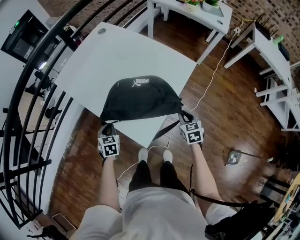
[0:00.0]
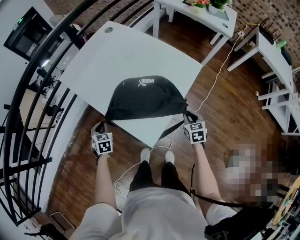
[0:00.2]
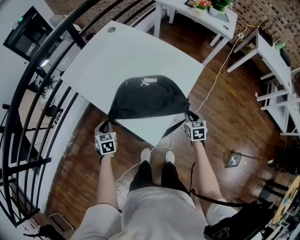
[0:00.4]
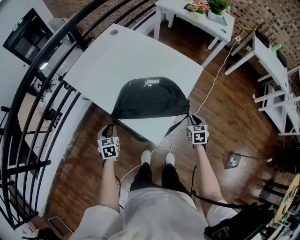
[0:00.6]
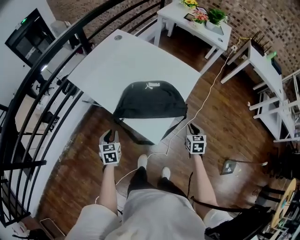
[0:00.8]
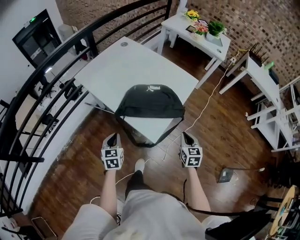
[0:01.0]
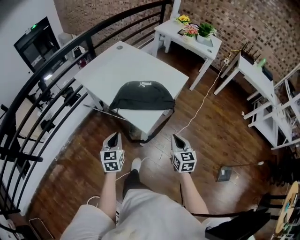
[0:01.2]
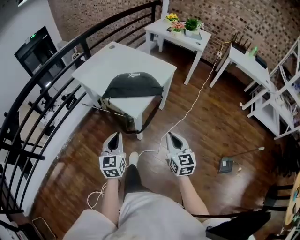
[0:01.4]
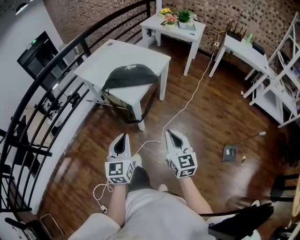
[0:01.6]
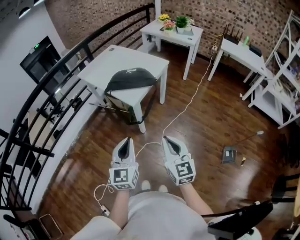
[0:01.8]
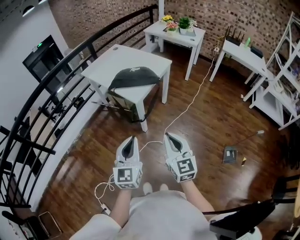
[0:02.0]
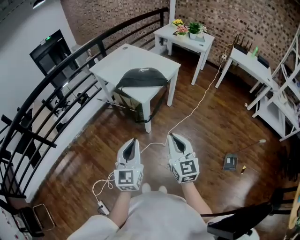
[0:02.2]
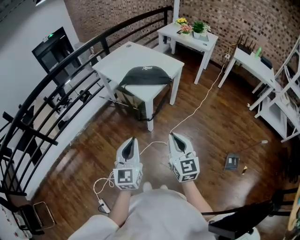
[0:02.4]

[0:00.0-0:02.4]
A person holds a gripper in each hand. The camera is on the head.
0:00.0 to 0:01.2: The grippers both shift backward and upward by approximately 25 cm. The left gripper turns by roughly 30 degrees. The right gripper rotates some 20 degrees.
0:01.2 to 0:02.4: The two grippers go some 40 cm backward and upward. The left gripper turns by roughly 20 degrees. The right gripper swivels some 20 degrees.

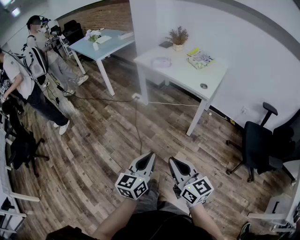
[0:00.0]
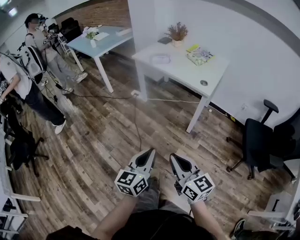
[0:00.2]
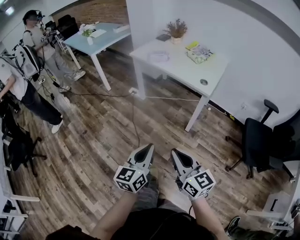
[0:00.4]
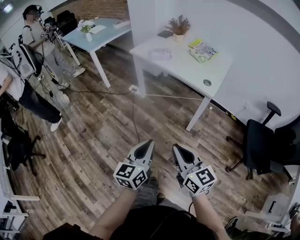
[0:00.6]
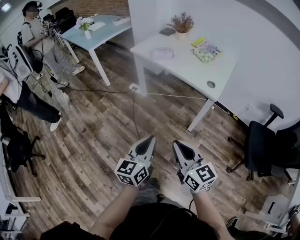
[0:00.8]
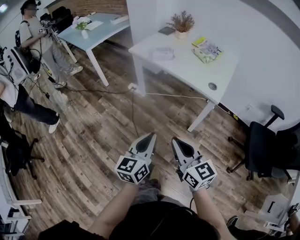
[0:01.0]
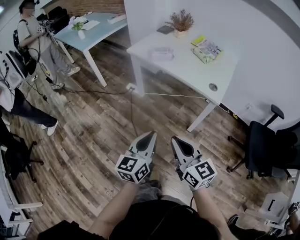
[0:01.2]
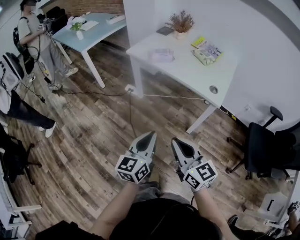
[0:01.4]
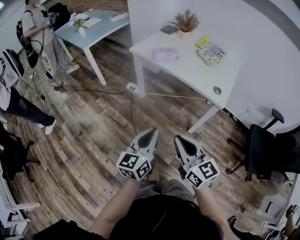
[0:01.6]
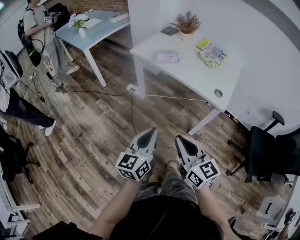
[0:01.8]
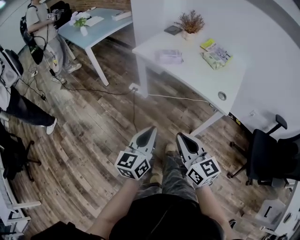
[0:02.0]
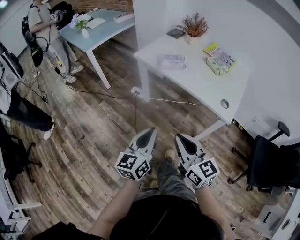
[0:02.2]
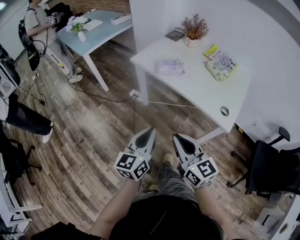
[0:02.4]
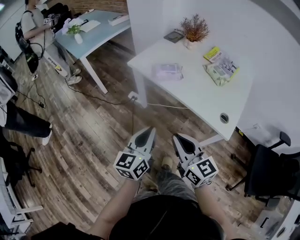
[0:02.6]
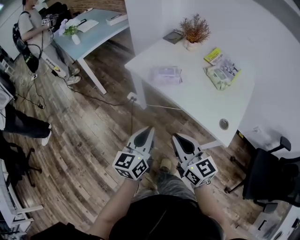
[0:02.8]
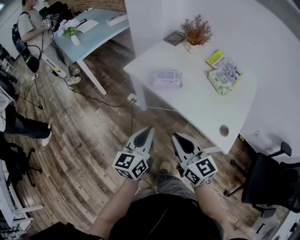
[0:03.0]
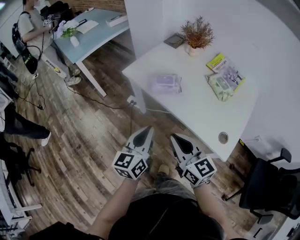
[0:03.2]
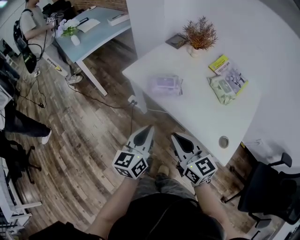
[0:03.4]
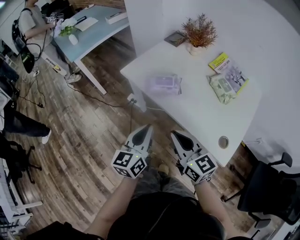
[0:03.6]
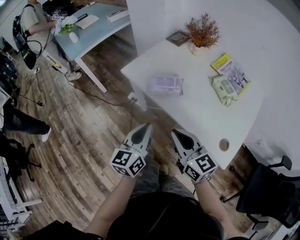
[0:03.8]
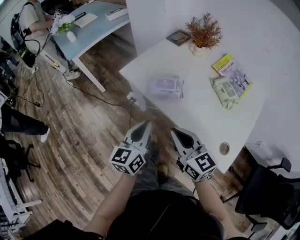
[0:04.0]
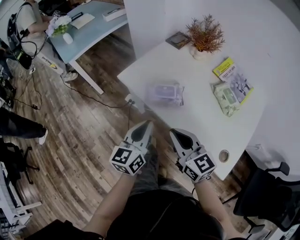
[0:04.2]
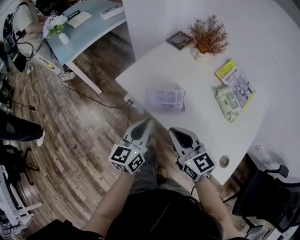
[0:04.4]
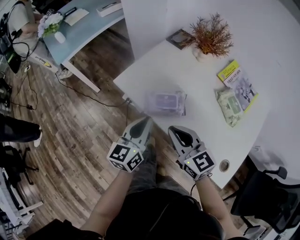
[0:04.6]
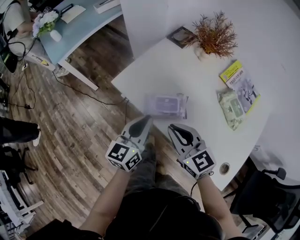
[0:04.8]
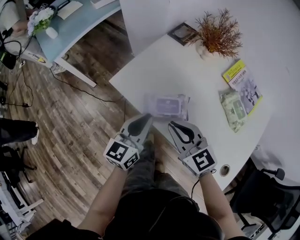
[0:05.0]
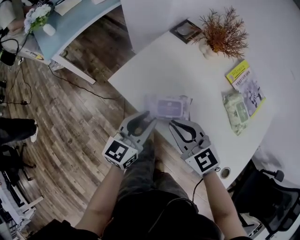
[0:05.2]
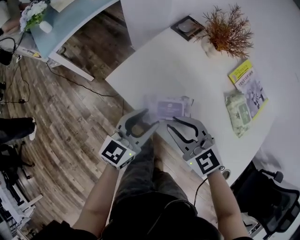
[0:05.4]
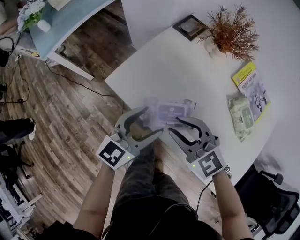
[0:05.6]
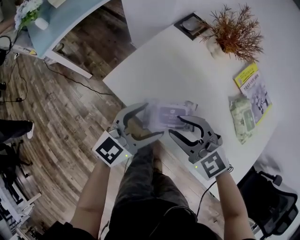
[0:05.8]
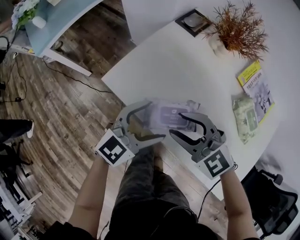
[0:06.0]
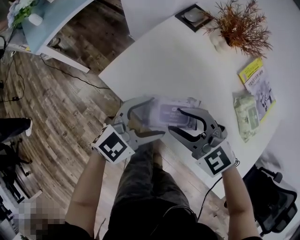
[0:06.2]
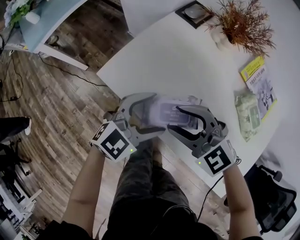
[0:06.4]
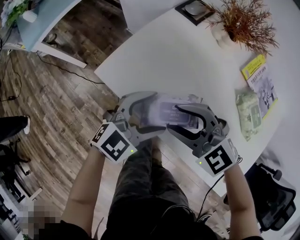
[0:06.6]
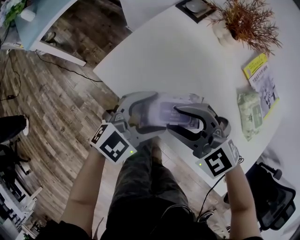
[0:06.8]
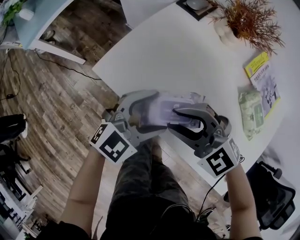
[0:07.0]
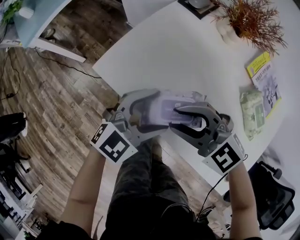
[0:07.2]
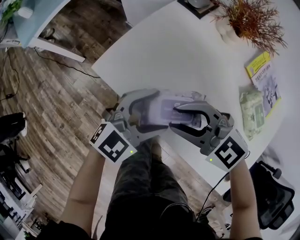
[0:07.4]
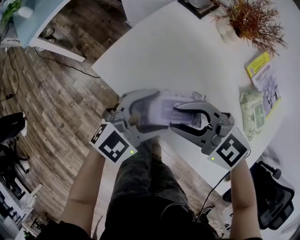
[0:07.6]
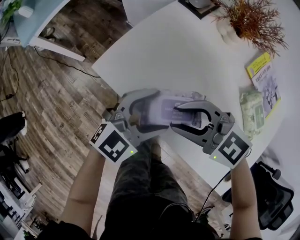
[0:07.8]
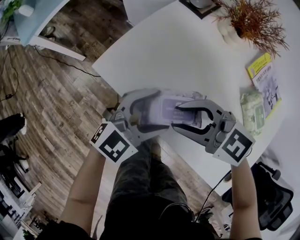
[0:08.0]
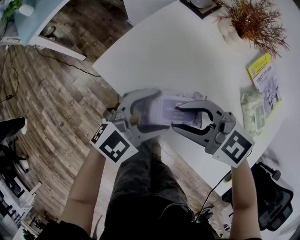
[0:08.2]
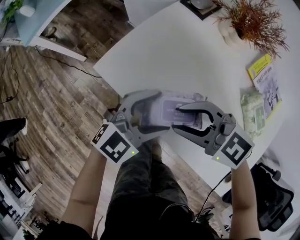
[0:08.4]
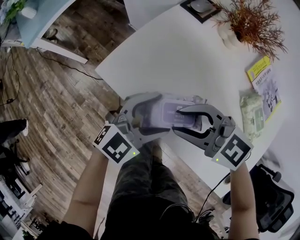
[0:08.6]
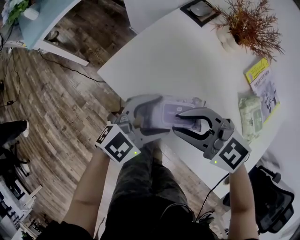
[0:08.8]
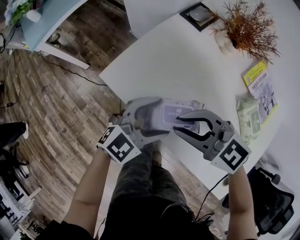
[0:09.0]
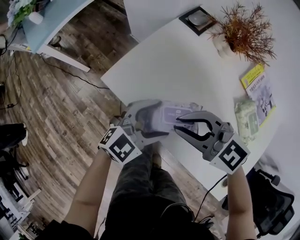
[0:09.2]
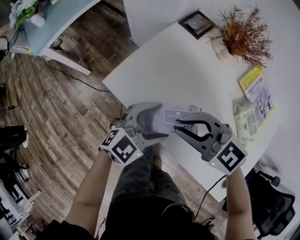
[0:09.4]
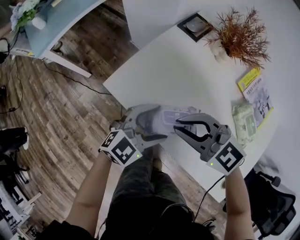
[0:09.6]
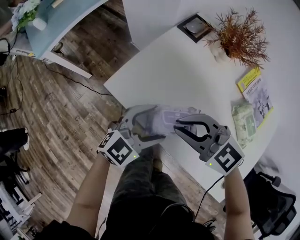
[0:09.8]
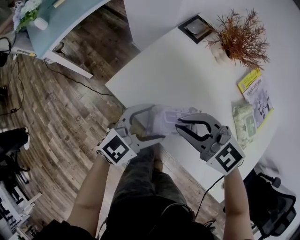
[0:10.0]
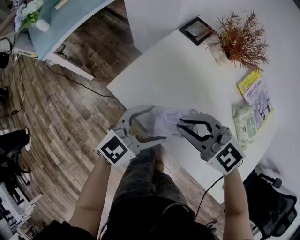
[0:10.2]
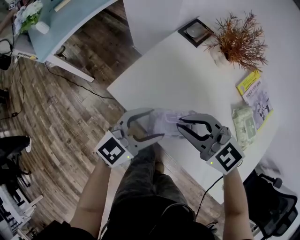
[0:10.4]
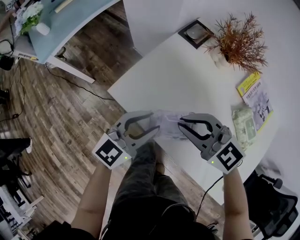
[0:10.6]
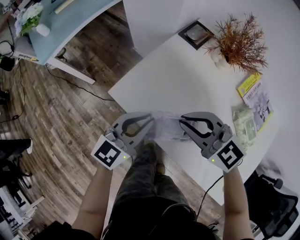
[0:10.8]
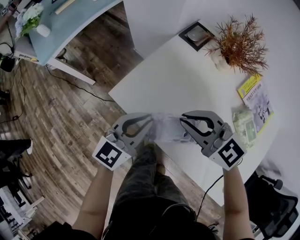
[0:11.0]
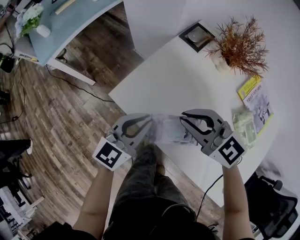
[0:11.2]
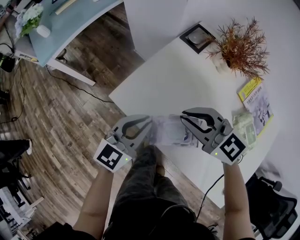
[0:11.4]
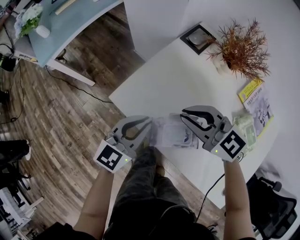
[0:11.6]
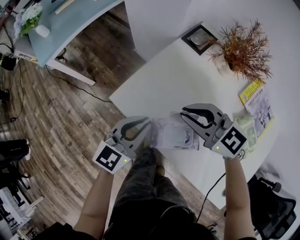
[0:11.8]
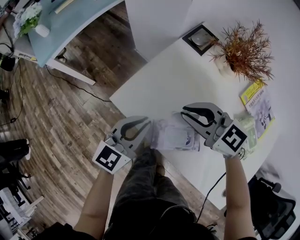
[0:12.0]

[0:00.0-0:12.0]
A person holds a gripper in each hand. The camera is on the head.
0:00.0 to 0:01.6: The grippers both shift forward by approximately 25 cm.
0:01.6 to 0:03.0: Both grippers travel together forward, approximately 25 cm.
0:03.0 to 0:04.4: The two grippers go some 20 cm forward.
0:04.4 to 0:06.0: The grippers both shift forward and downward by approximately 10 cm. The left gripper changes its angle by approximately 50 degrees, and opens its fingers. The right gripper changes its angle by about 40 degrees, and opens its fingers.
0:06.0 to 0:07.6: The grippers stay close to where they were, moving slightly.
0:07.6 to 0:09.0: The grippers stay close to where they were, moving slightly.
0:09.0 to 0:10.4: The left gripper moves some 5 cm.
0:10.4 to 0:12.0: The left gripper closes.

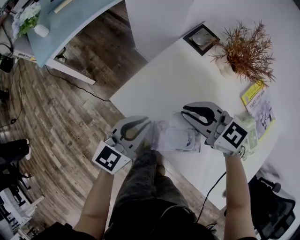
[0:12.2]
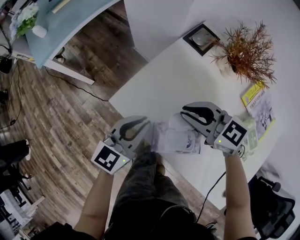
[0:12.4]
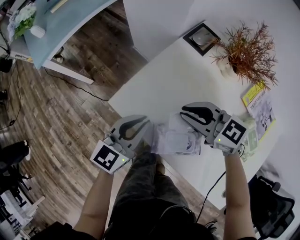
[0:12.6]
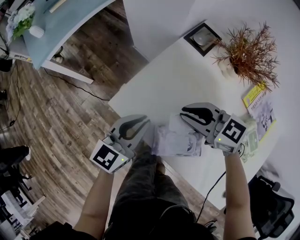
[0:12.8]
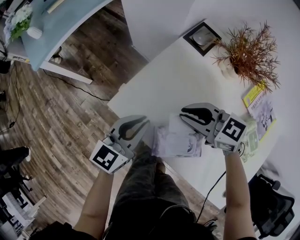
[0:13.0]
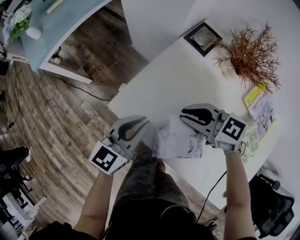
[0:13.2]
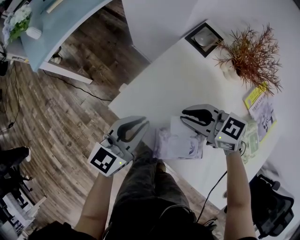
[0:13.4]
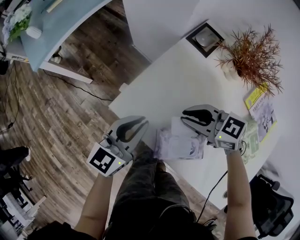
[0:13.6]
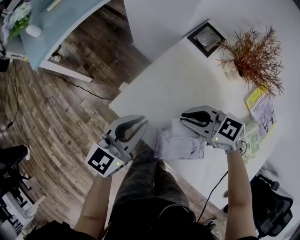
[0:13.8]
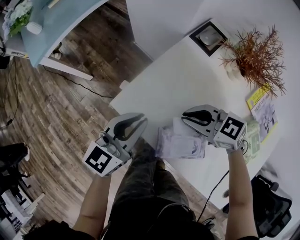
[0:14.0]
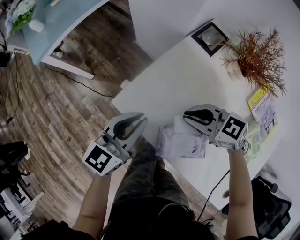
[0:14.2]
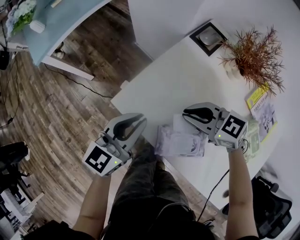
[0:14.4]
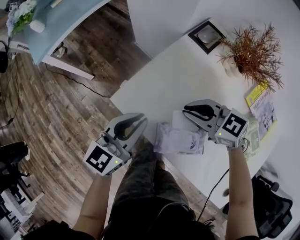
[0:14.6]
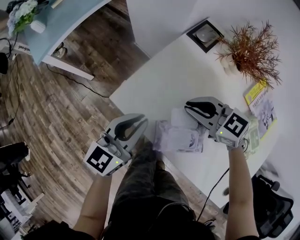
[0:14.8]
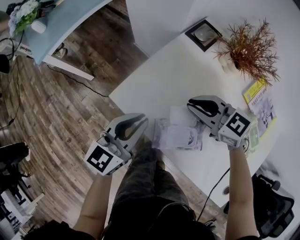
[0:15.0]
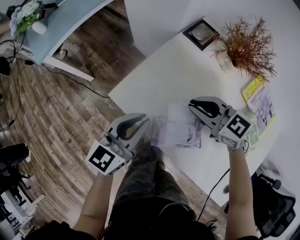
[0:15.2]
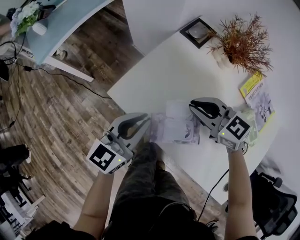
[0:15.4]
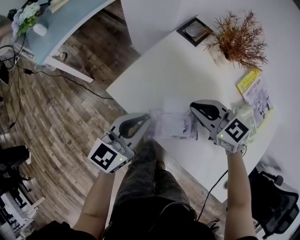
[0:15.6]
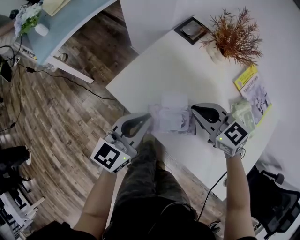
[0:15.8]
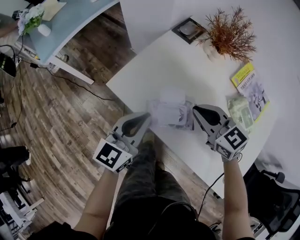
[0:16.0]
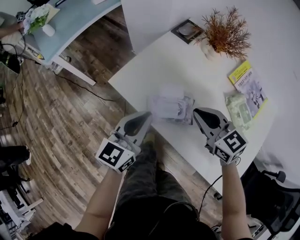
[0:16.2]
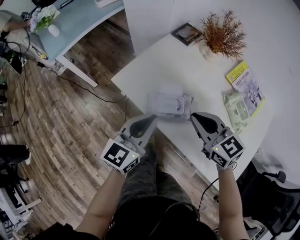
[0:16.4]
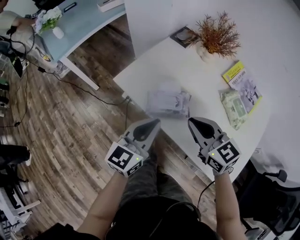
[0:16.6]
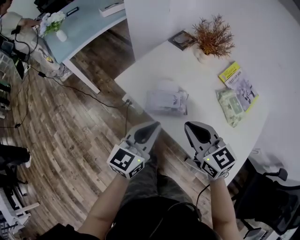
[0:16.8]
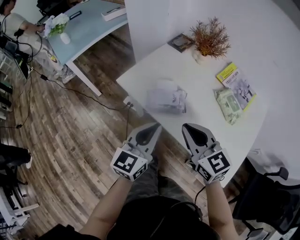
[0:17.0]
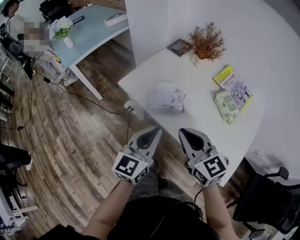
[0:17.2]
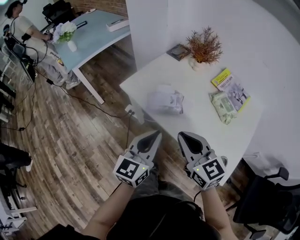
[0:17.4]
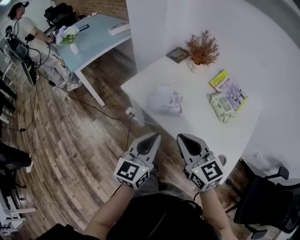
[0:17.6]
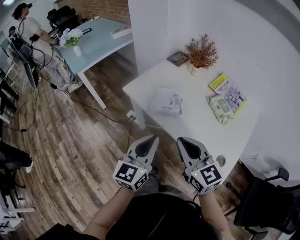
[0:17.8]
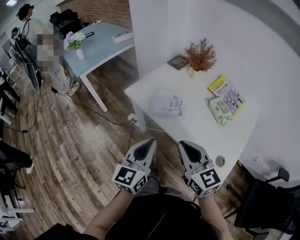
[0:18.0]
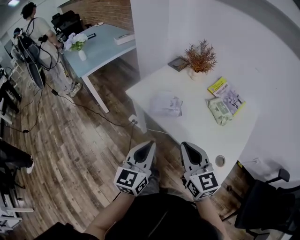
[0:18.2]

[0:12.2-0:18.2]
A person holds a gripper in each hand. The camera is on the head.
0:12.2 to 0:13.8: The right gripper is displaced downward by approximately 5 cm.
0:13.8 to 0:15.2: The grippers move only a little.
0:15.2 to 0:16.6: The two grippers go some 15 cm backward. The right gripper rotates approximately 20 degrees.
0:16.6 to 0:18.2: Both grippers move backward, about 15 cm.

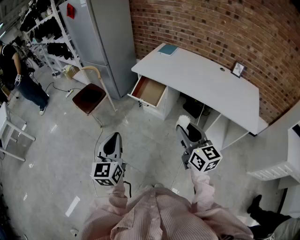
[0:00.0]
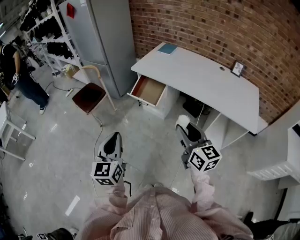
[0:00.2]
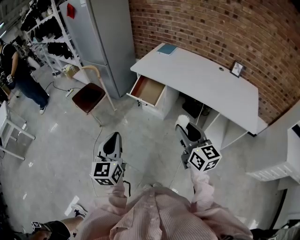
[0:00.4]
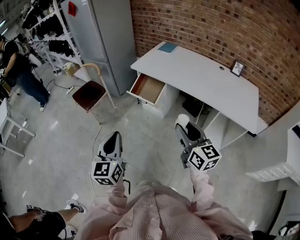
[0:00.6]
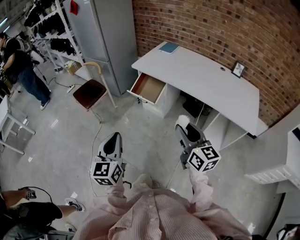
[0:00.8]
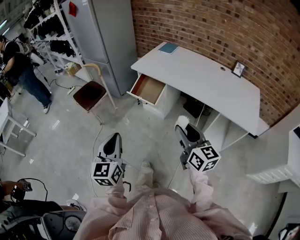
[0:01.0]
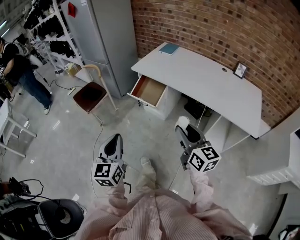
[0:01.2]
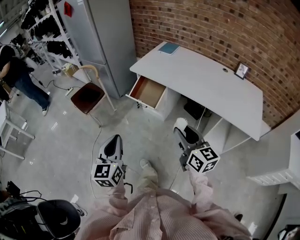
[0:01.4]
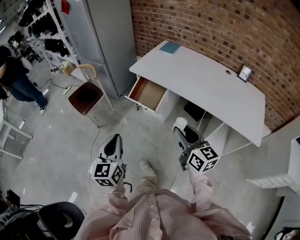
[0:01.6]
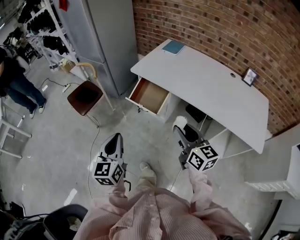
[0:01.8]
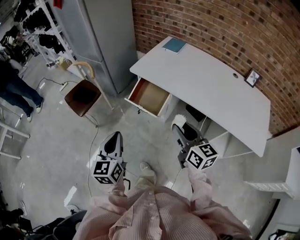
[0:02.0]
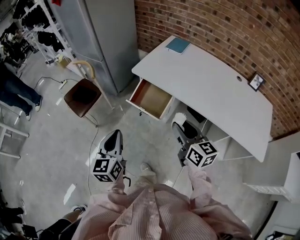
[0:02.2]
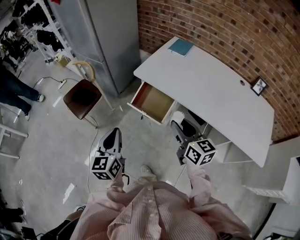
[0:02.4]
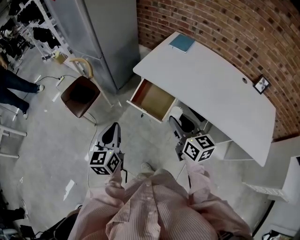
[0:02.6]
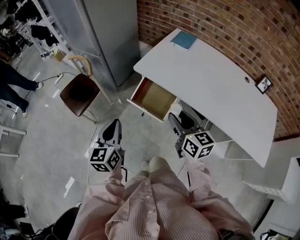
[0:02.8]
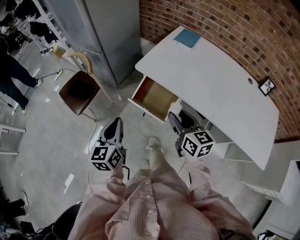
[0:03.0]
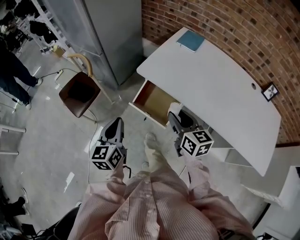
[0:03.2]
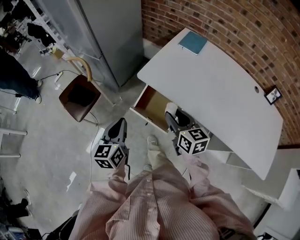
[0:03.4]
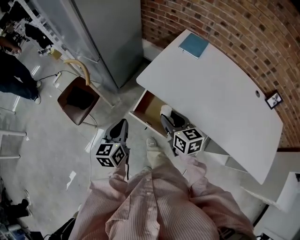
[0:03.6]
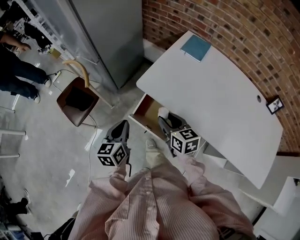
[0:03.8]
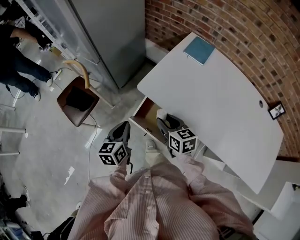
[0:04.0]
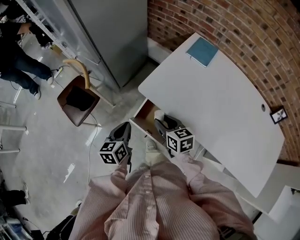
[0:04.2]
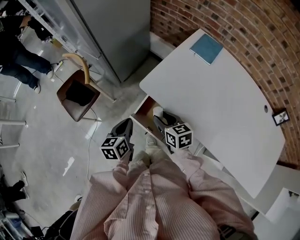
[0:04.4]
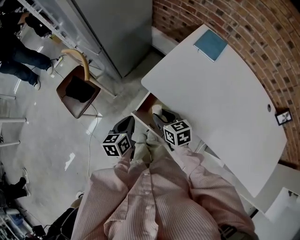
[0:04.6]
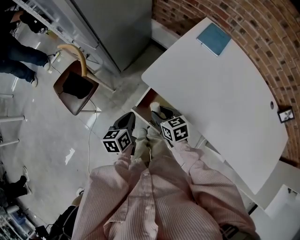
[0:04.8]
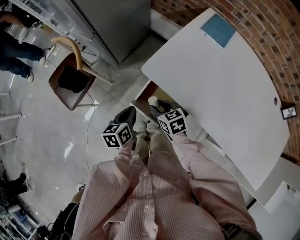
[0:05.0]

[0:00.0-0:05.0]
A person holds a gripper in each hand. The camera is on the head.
0:00.0 to 0:01.6: Both grippers travel together forward, about 10 cm.
0:01.6 to 0:03.4: Both grippers move forward, about 35 cm.
0:03.4 to 0:05.0: Both grippers travel together downward and forward, some 25 cm. The left gripper rotates approximately 30 degrees, while the right gripper swivels some 30 degrees.
